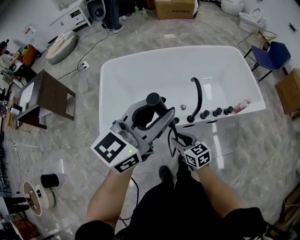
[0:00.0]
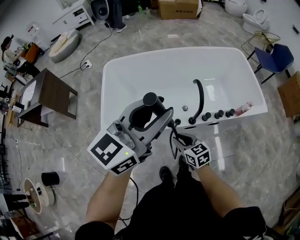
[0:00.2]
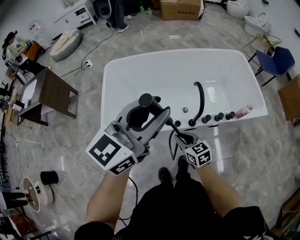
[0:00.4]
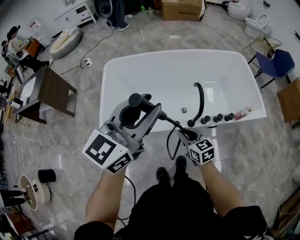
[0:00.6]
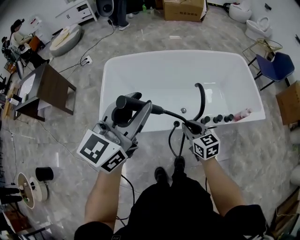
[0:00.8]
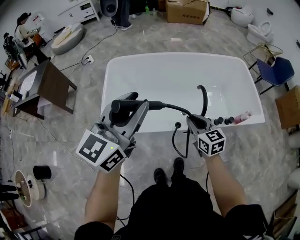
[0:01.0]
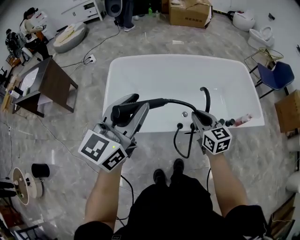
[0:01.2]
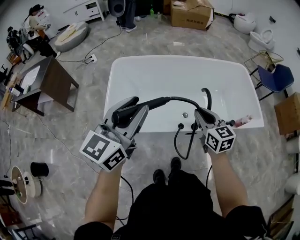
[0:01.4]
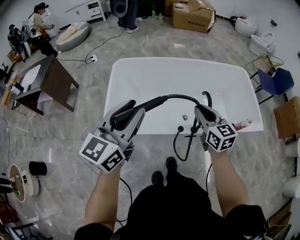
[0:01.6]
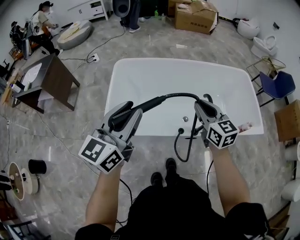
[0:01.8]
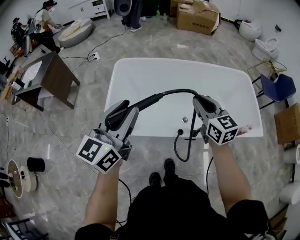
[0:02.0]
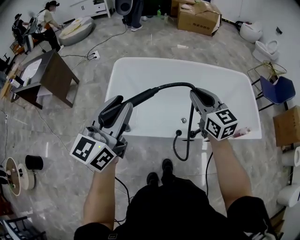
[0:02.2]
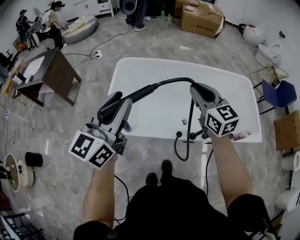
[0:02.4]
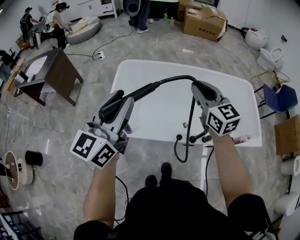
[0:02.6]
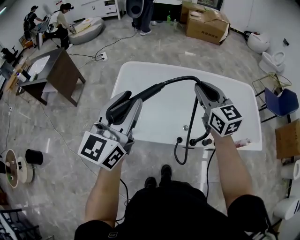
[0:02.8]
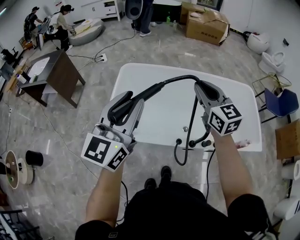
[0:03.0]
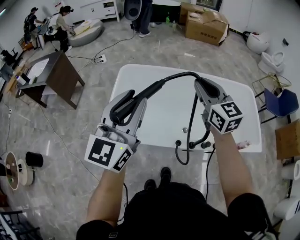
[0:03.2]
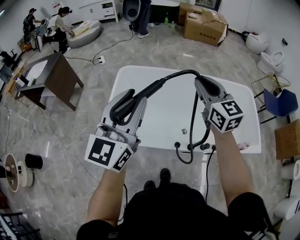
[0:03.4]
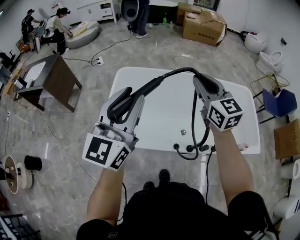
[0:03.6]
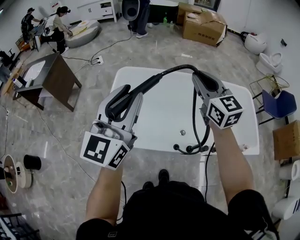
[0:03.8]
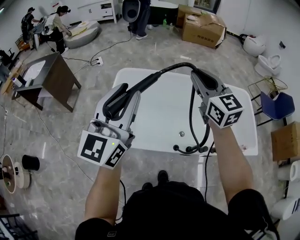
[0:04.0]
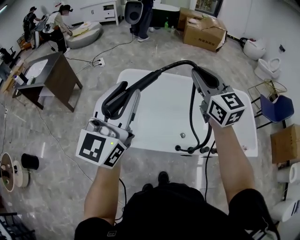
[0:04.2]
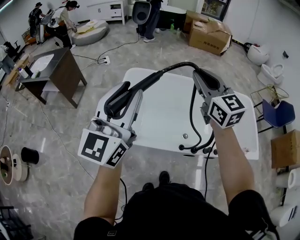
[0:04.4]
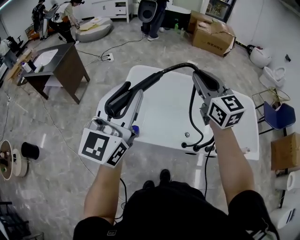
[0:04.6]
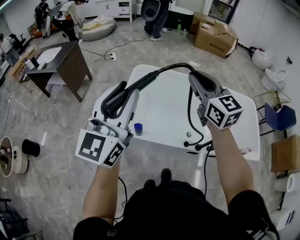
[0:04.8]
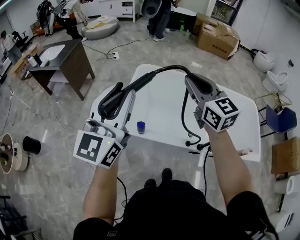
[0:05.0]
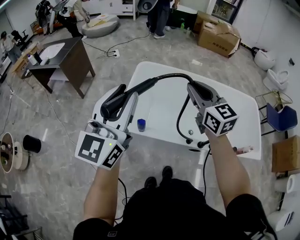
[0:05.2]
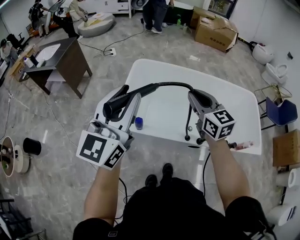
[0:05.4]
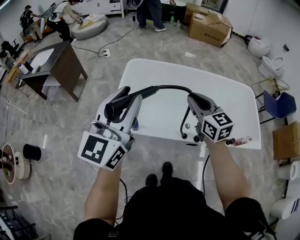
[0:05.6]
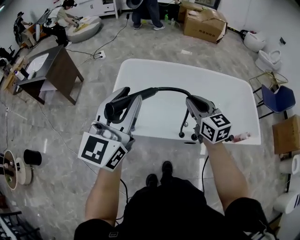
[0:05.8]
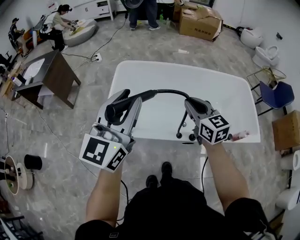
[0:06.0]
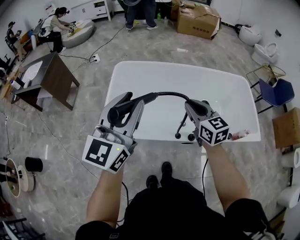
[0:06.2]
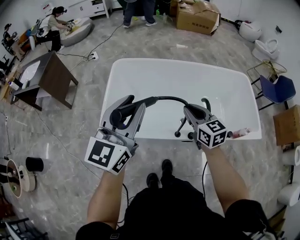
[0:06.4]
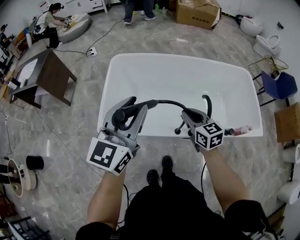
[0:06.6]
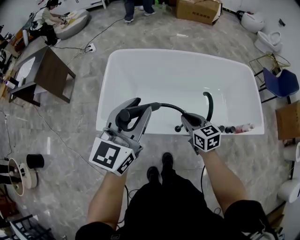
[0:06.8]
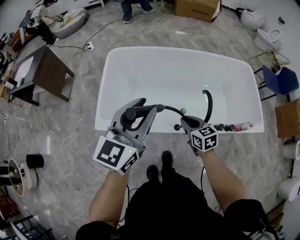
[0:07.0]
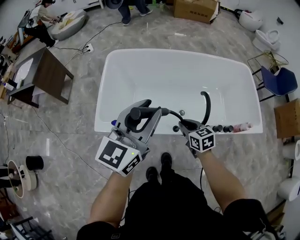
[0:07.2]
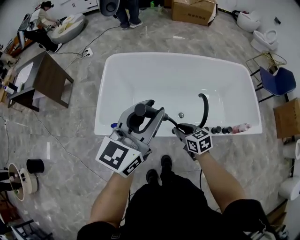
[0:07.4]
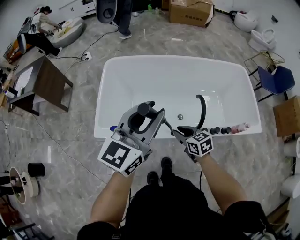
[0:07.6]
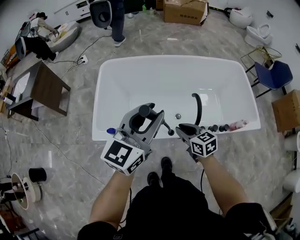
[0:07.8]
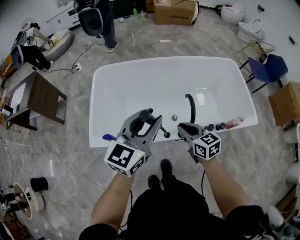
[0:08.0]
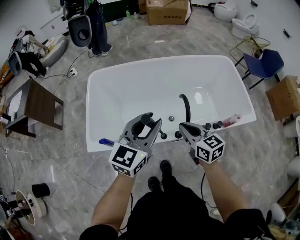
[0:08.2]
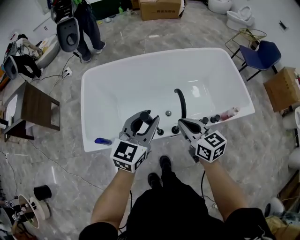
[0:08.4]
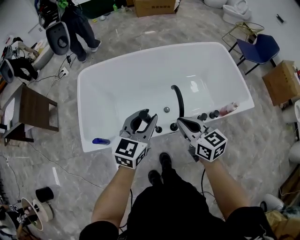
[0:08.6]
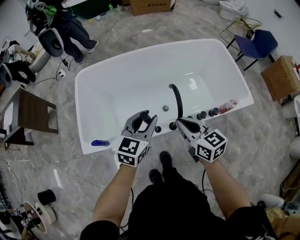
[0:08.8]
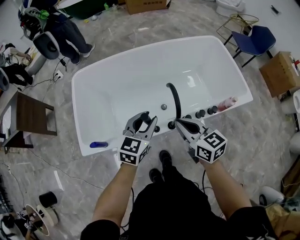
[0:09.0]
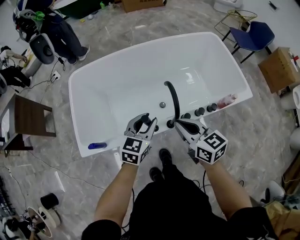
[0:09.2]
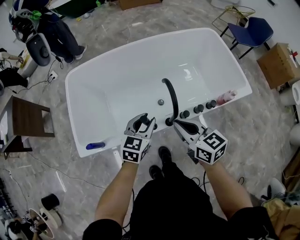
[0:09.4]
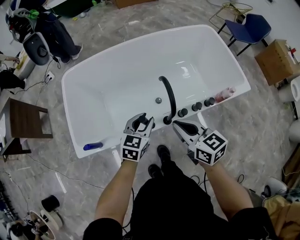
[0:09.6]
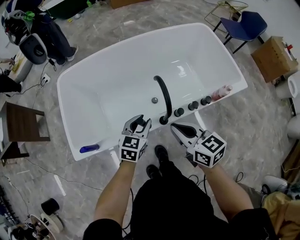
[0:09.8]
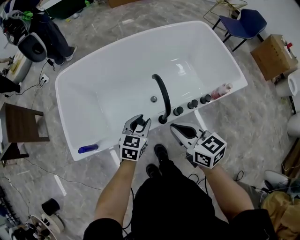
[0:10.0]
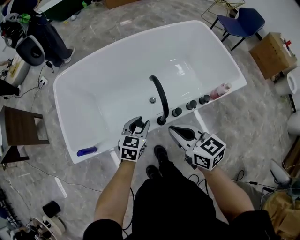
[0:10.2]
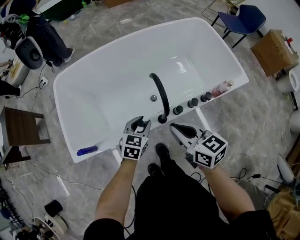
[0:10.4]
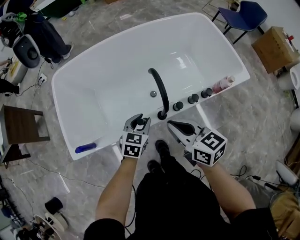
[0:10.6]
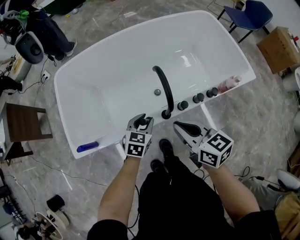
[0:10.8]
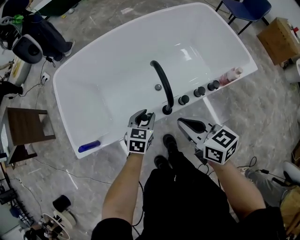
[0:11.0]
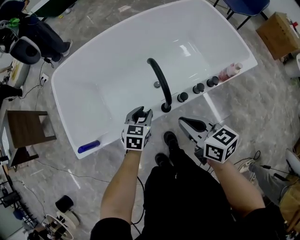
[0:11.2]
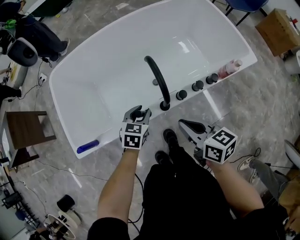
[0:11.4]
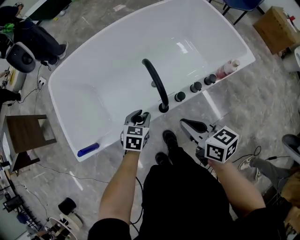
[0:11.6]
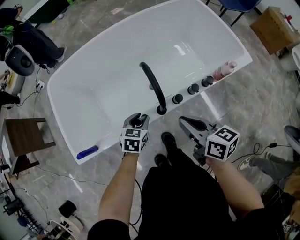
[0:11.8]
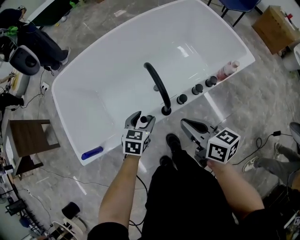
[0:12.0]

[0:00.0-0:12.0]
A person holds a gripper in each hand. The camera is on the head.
0:00.0 to 0:01.6: The right gripper moves upward and forward, roughly 20 cm, while the left gripper heads to the left, covering approximately 15 cm, and swivels some 20 degrees.
0:01.6 to 0:03.0: The right gripper is displaced upward and forward by approximately 15 cm, while the left gripper is displaced upward by approximately 5 cm.
0:03.0 to 0:04.4: The left gripper shifts approximately 5 cm to the left, while the right gripper is displaced upward and to the left by some 10 cm.
0:04.4 to 0:06.0: The left gripper travels to the left and back again, some 10 cm each way. Meanwhile the right gripper heads downward and backward, covering about 20 cm.
0:06.0 to 0:07.6: The right gripper shifts some 20 cm downward, and rotates approximately 30 degrees. The left gripper heads to the right and downward, covering about 15 cm.
0:07.6 to 0:09.0: The right gripper is displaced upward and to the right by roughly 15 cm, changes its angle by some 20 degrees, and closes its fingers, while the left gripper moves downward and to the right, about 25 cm, and turns by about 30 degrees.
0:09.0 to 0:10.4: The right gripper changes place by some 5 cm, while the left gripper is displaced downward by some 15 cm.
0:10.4 to 0:12.0: The left gripper opens its fingers. Meanwhile the right gripper moves roughly 5 cm.

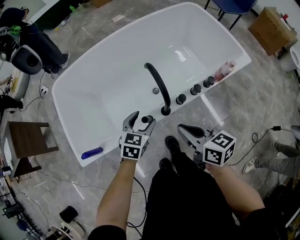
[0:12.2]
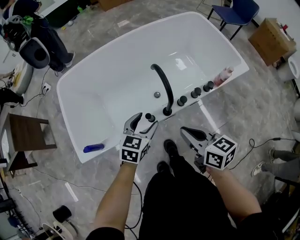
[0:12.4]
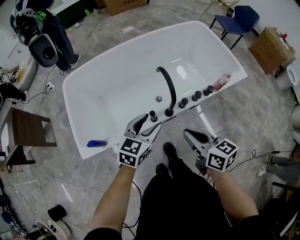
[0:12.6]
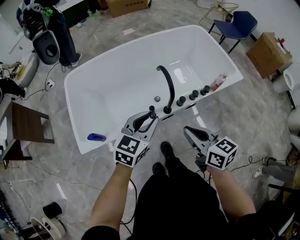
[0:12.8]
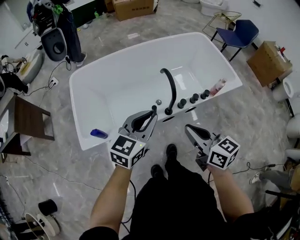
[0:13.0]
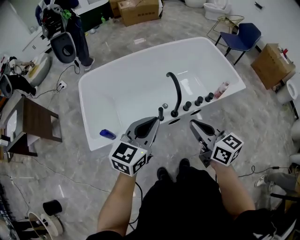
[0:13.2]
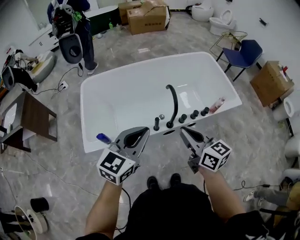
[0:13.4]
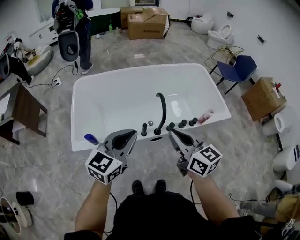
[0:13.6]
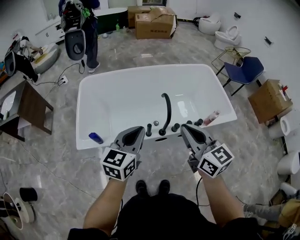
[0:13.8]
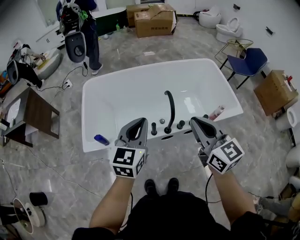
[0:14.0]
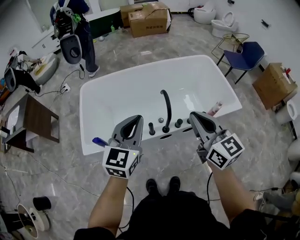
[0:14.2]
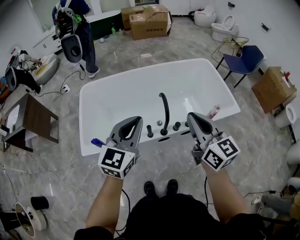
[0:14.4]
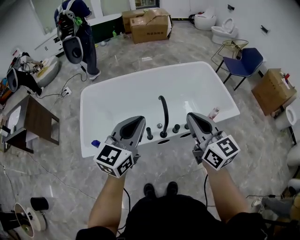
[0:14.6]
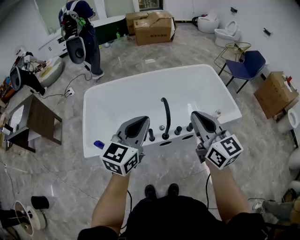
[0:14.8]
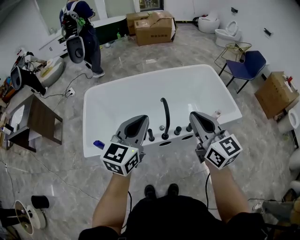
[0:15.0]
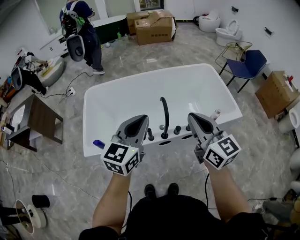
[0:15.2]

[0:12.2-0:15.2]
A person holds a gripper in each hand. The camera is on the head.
0:12.2 to 0:13.8: Both grippers move upward, approximately 25 cm. The right gripper changes its angle by about 30 degrees, while the left gripper turns by approximately 30 degrees, and closes.
0:13.8 to 0:15.2: The left gripper moves upward, about 5 cm, while the right gripper heads to the right, covering about 5 cm.

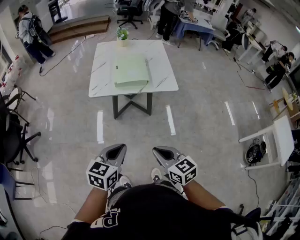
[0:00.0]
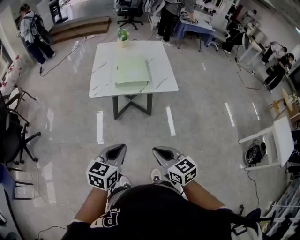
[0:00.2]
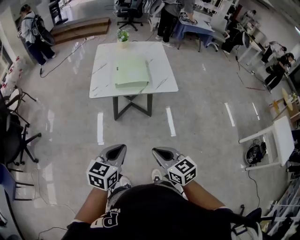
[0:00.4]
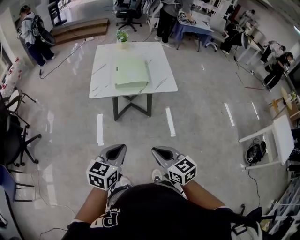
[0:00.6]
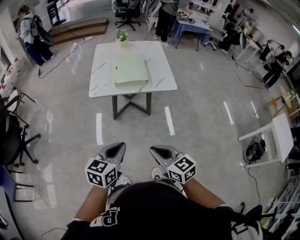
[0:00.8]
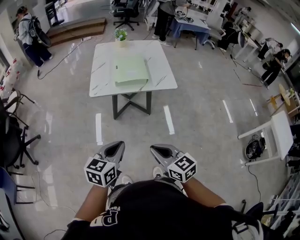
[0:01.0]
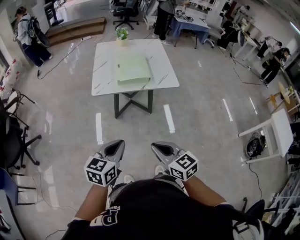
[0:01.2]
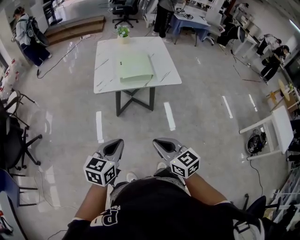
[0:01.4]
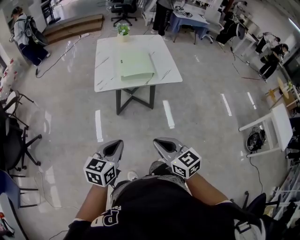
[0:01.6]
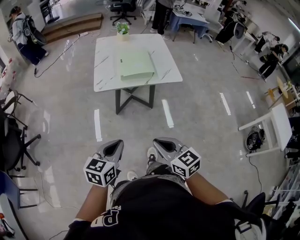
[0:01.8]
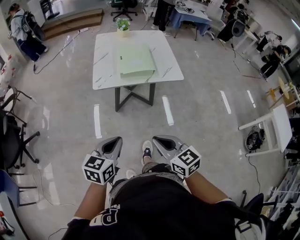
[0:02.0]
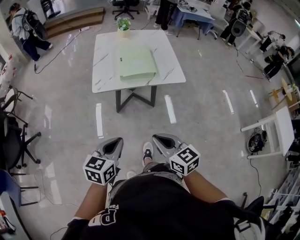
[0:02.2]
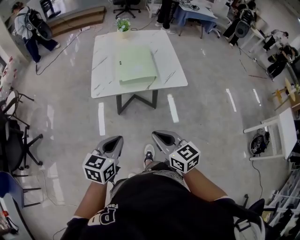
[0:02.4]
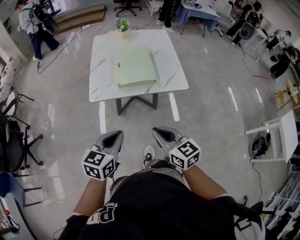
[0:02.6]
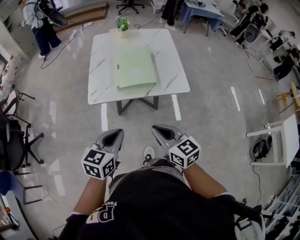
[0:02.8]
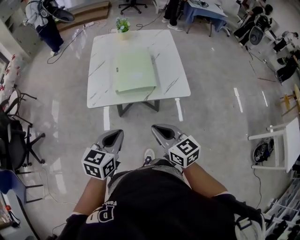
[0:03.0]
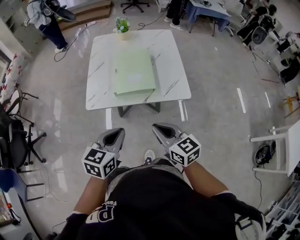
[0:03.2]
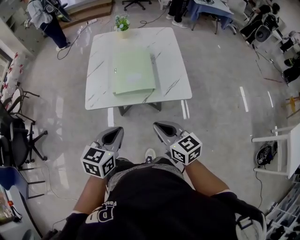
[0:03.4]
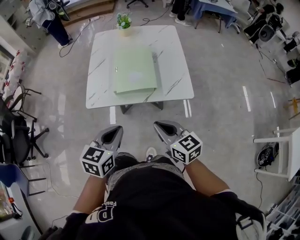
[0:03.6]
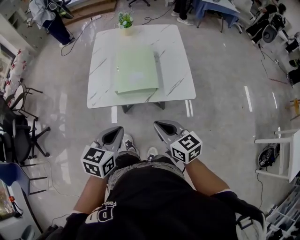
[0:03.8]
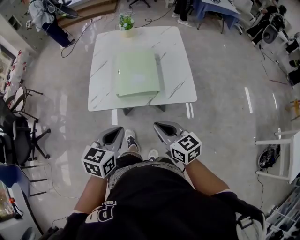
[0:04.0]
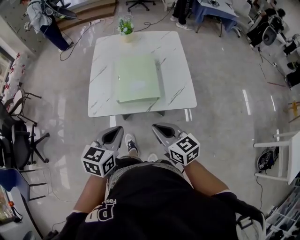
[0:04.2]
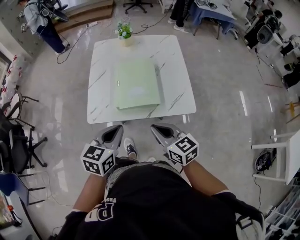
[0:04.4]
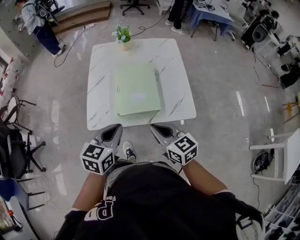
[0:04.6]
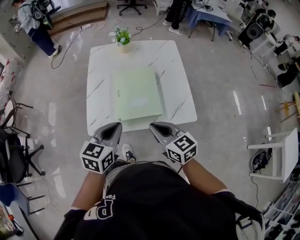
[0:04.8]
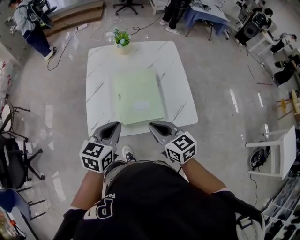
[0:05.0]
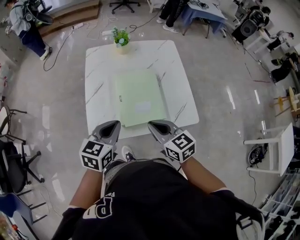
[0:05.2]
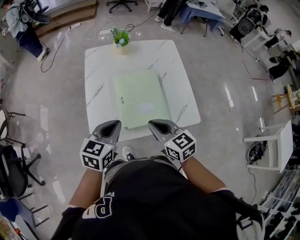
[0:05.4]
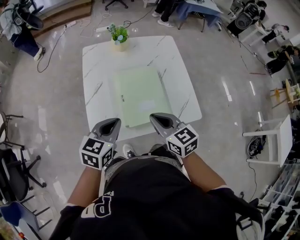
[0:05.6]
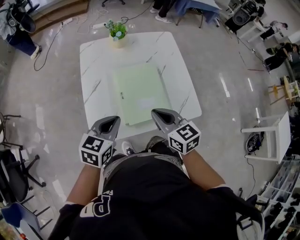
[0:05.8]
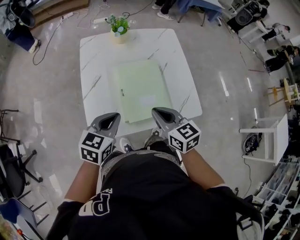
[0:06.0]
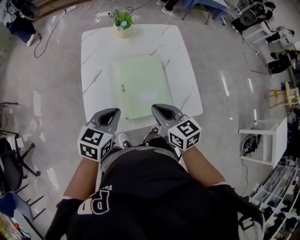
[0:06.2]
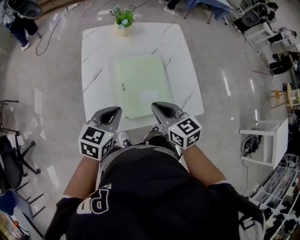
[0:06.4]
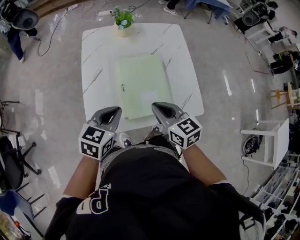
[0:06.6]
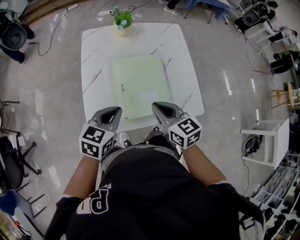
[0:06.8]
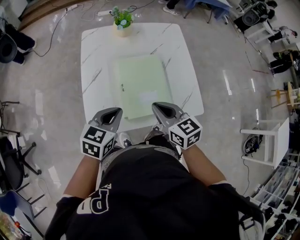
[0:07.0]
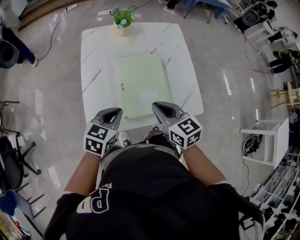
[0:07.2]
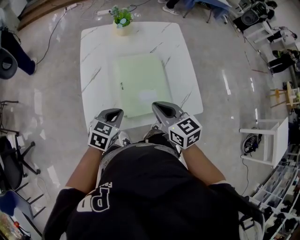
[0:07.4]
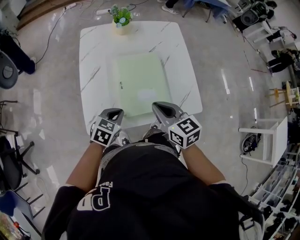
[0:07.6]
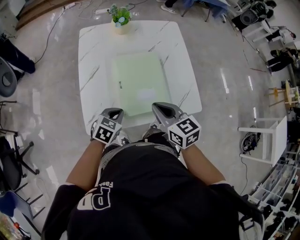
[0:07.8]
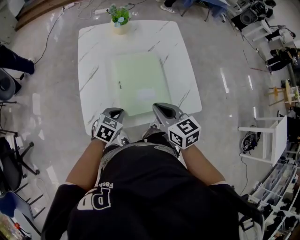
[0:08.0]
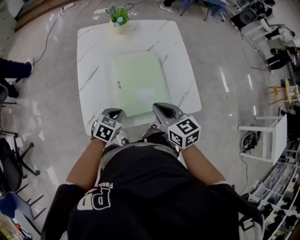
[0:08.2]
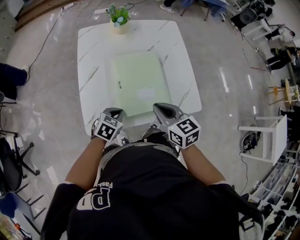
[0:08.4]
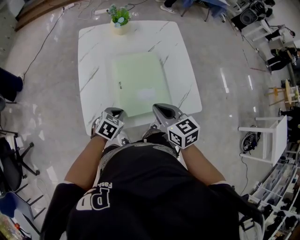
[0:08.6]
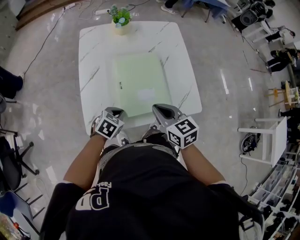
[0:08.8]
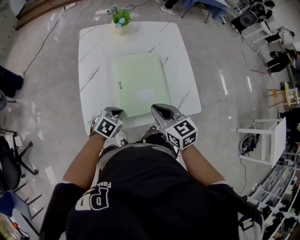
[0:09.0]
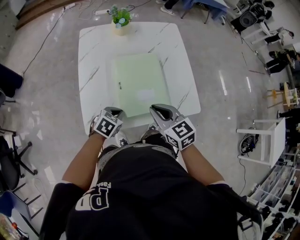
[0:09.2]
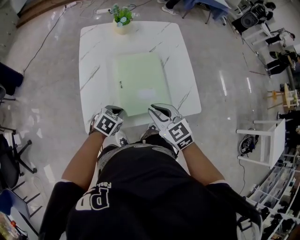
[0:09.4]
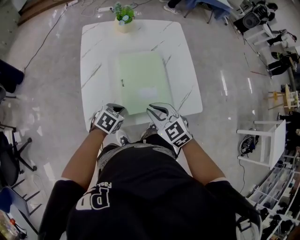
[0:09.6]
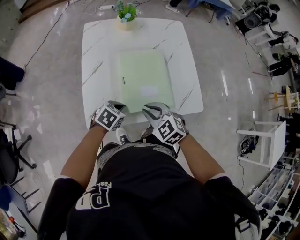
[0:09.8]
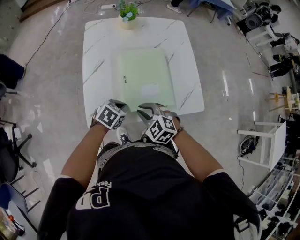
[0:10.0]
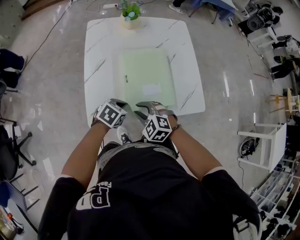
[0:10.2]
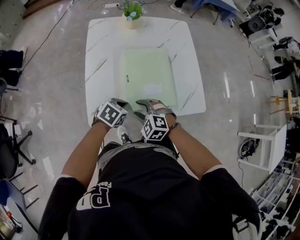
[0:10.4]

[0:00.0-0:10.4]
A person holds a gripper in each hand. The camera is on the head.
0:00.0 to 0:01.4: Both grippers travel together to the left, approximately 5 cm.
0:01.4 to 0:03.0: Both grippers travel together forward, roughly 25 cm.
0:03.0 to 0:04.4: The two grippers go about 15 cm forward.
0:04.4 to 0:06.0: Both grippers move forward and to the left, some 15 cm.
0:06.0 to 0:07.4: The left gripper heads downward, covering about 10 cm.
0:07.4 to 0:09.0: The left gripper goes some 5 cm downward.
0:09.0 to 0:10.4: The right gripper shifts about 15 cm downward and to the left, rotates around the line of its fingers by roughly 50 degrees, counterclockwise from behind, and opens.
